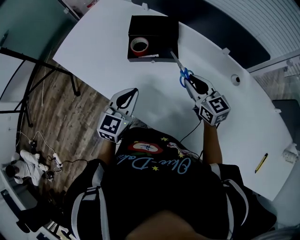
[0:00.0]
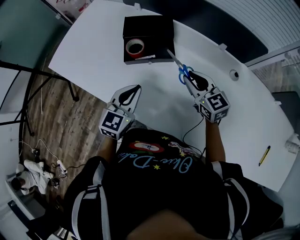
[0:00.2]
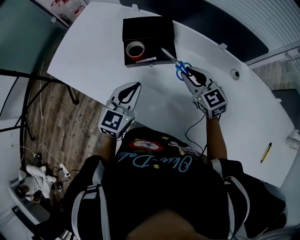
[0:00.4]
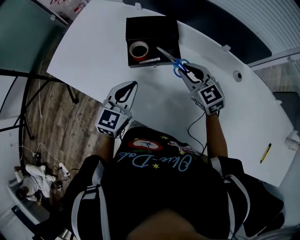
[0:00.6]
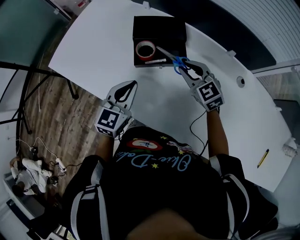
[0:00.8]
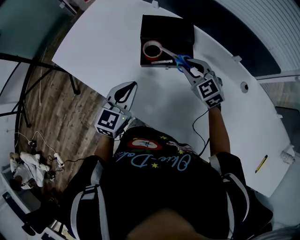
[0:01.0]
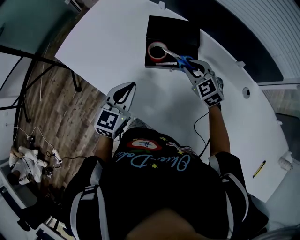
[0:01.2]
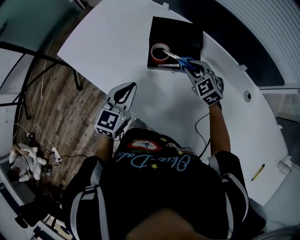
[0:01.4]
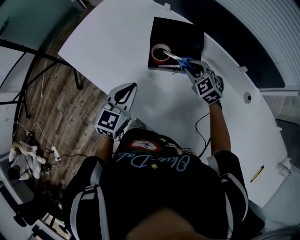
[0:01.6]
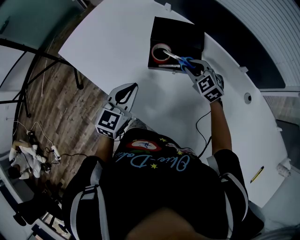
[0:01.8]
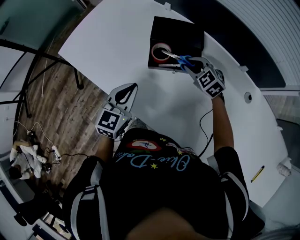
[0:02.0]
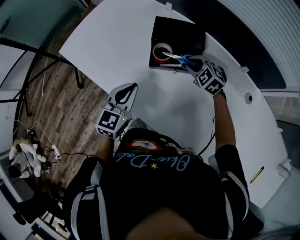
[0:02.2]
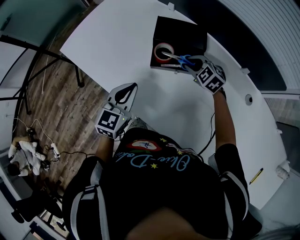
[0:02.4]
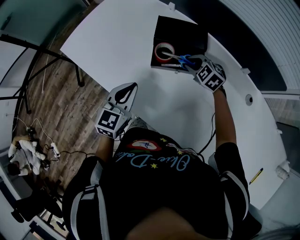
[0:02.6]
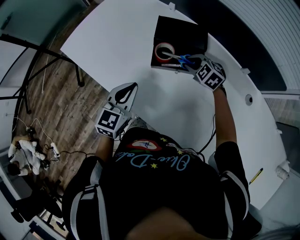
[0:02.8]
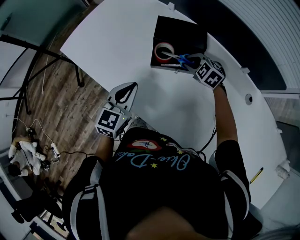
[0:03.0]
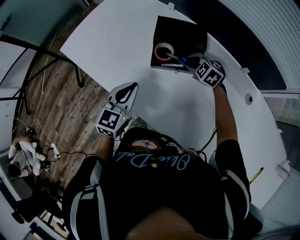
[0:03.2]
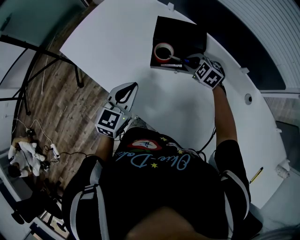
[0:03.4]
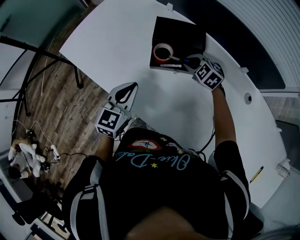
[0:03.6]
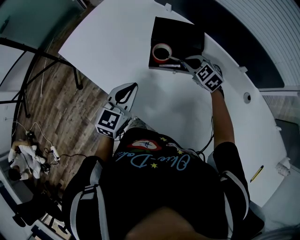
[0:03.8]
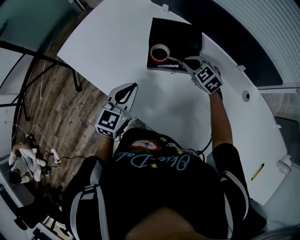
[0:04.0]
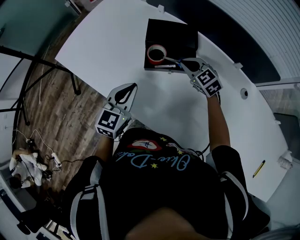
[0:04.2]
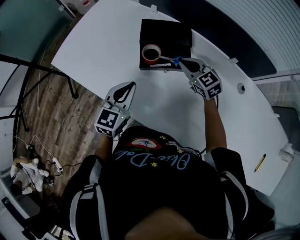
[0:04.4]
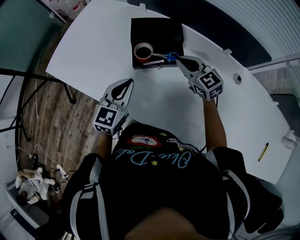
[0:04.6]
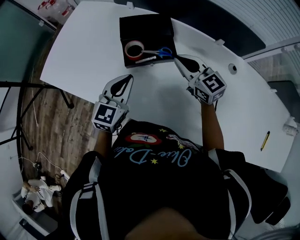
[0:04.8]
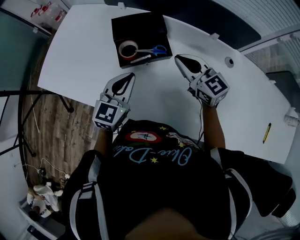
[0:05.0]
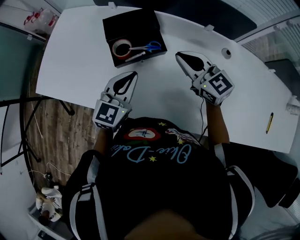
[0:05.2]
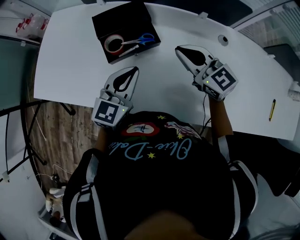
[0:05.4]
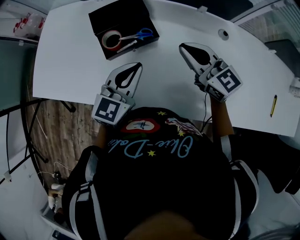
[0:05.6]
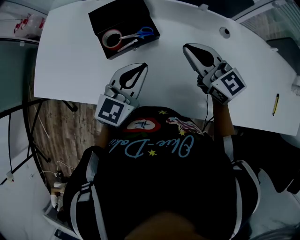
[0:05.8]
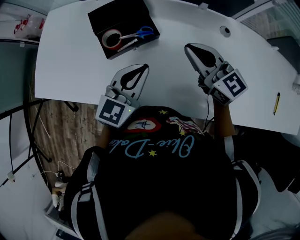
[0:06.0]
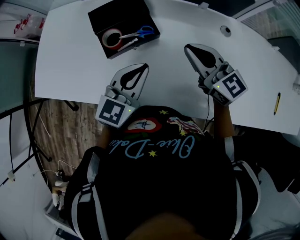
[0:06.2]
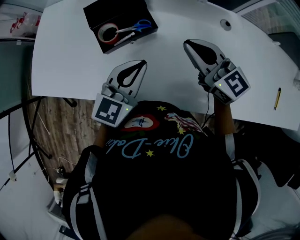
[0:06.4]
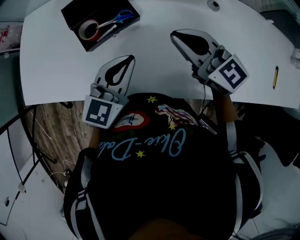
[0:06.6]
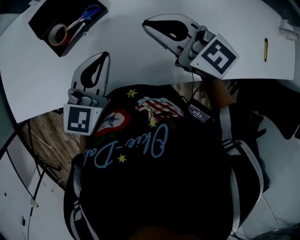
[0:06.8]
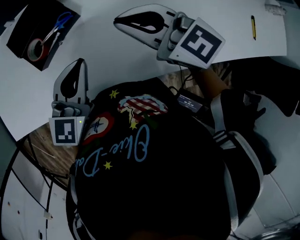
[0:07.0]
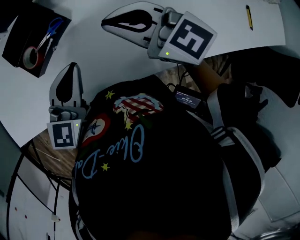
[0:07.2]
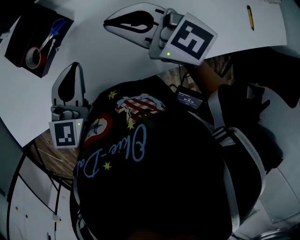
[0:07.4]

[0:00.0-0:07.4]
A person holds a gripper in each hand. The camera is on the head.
0:00.0 to 0:01.4: The left gripper heads to the left and forward, covering some 10 cm; the right gripper is displaced forward, to the left and downward by some 15 cm, and changes its angle by about 40 degrees.
0:01.4 to 0:03.0: The right gripper shifts by some 5 cm.
0:03.0 to 0:04.4: The right gripper travels upward by some 5 cm, and rotates some 30 degrees.
0:04.4 to 0:06.0: The right gripper moves upward, backward and to the right, some 20 cm, and changes its angle by roughly 30 degrees. Meanwhile the left gripper is displaced to the right by some 15 cm, and changes its angle by roughly 30 degrees.
0:06.0 to 0:07.4: The grippers make only small movements.

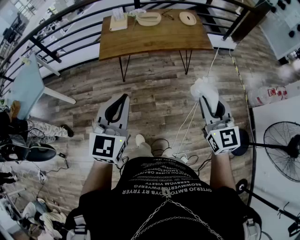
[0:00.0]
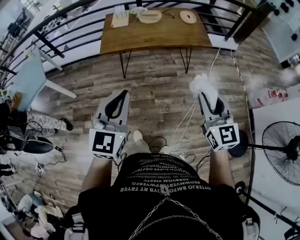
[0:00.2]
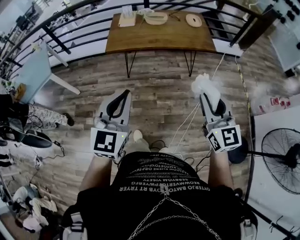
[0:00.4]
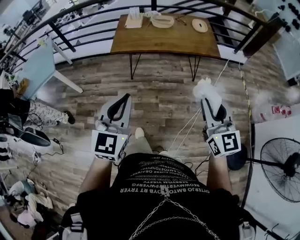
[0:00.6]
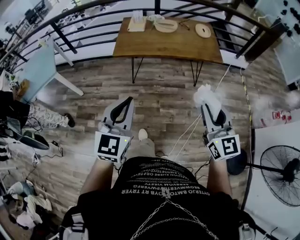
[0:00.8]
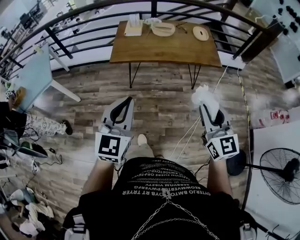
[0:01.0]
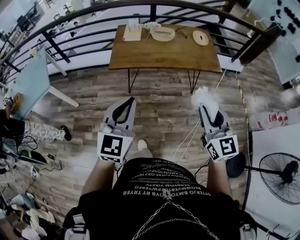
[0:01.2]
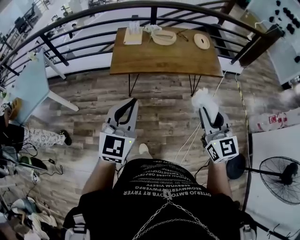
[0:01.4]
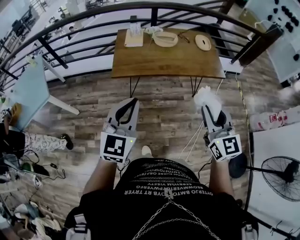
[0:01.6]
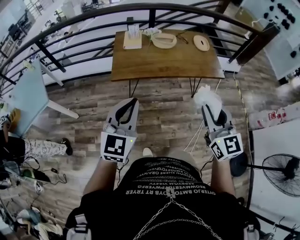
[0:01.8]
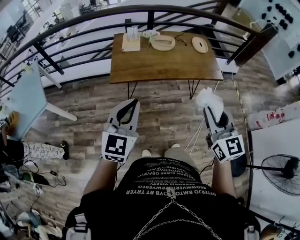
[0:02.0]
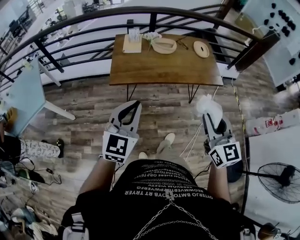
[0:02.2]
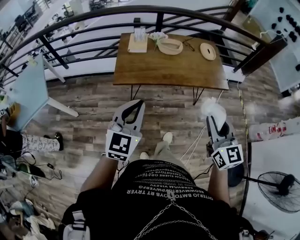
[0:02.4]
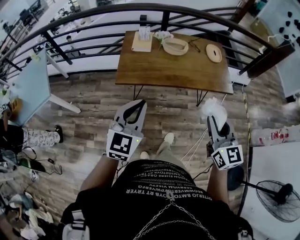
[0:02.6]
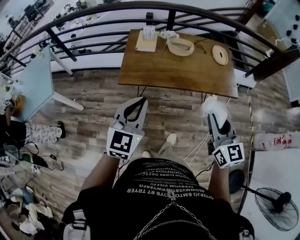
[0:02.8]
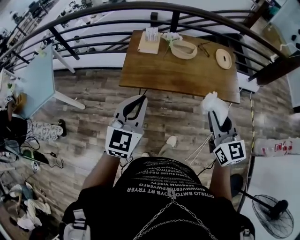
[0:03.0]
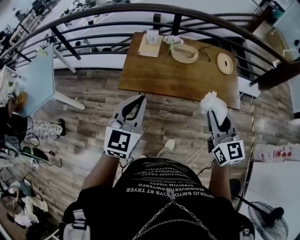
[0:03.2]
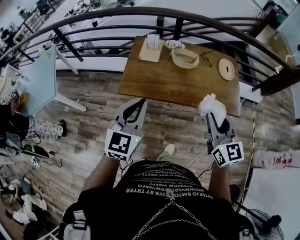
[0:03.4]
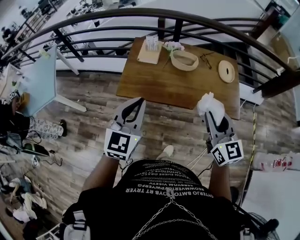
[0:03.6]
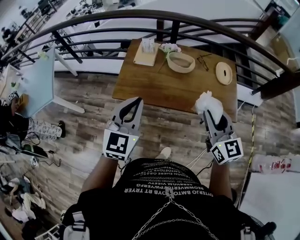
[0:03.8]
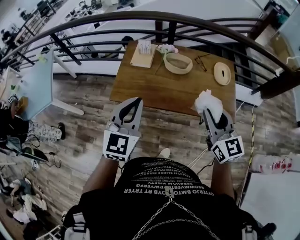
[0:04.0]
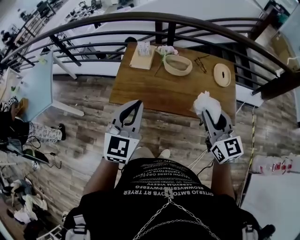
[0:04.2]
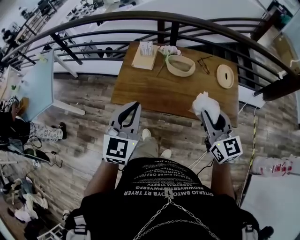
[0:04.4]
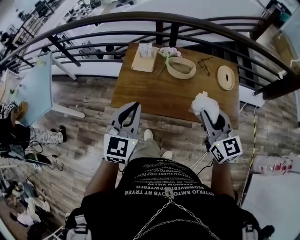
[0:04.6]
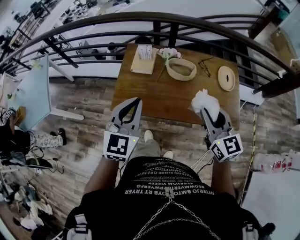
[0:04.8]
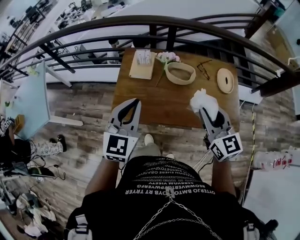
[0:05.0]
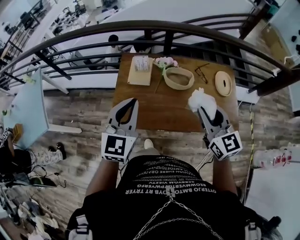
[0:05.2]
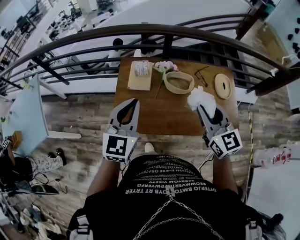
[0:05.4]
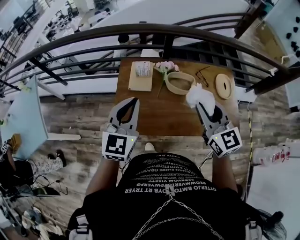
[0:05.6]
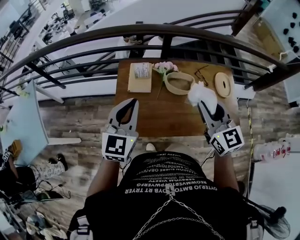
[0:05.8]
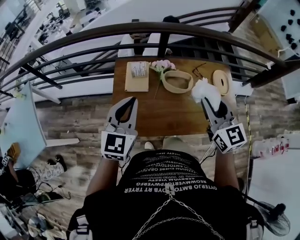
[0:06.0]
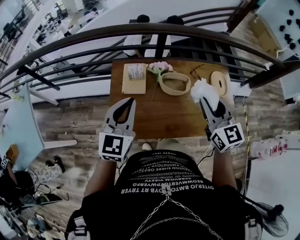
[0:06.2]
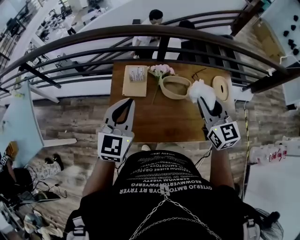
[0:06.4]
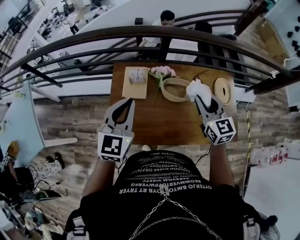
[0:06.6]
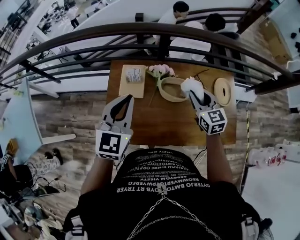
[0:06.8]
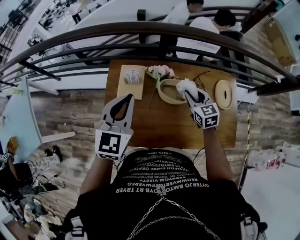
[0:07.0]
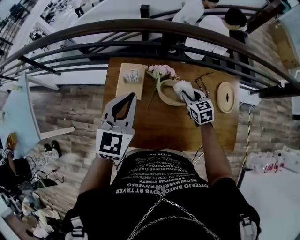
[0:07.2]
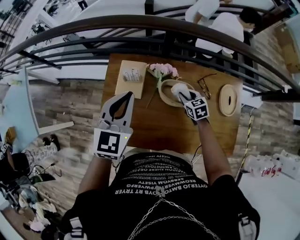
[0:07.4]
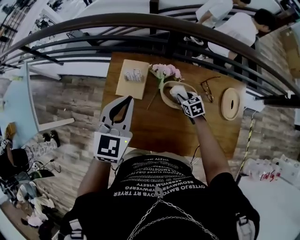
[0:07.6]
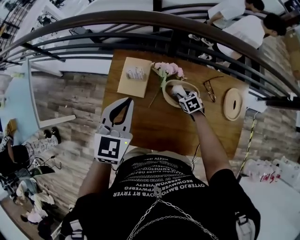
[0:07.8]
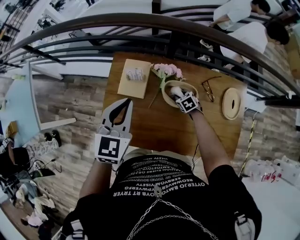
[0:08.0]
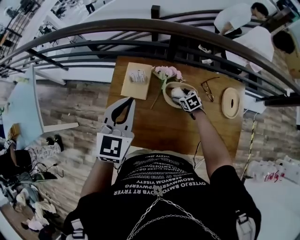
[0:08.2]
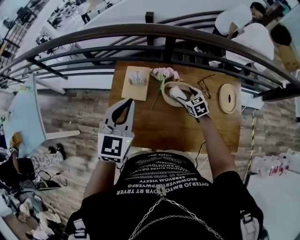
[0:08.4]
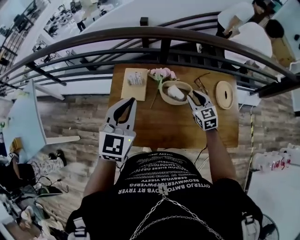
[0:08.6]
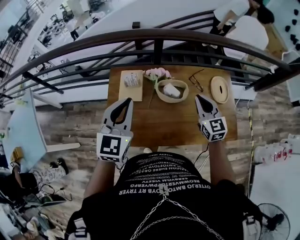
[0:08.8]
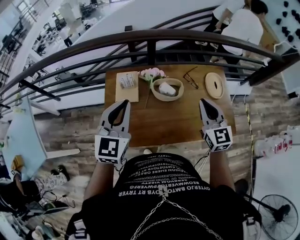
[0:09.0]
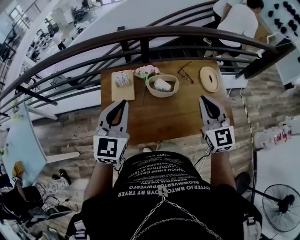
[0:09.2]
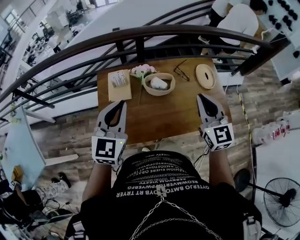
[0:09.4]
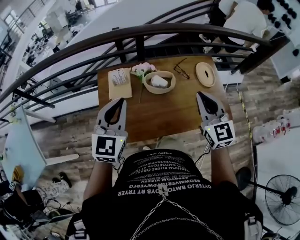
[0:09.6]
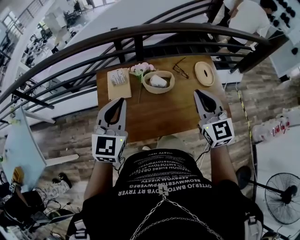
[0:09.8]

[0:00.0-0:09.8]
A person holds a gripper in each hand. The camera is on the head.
0:00.0 to 0:01.4: The left gripper is displaced forward by approximately 10 cm. The right gripper is displaced forward and to the left by about 10 cm.
0:01.4 to 0:02.8: The grippers both shift forward by some 15 cm.
0:02.8 to 0:04.2: Both grippers move forward and to the right, roughly 20 cm.
0:04.2 to 0:05.6: The two grippers go roughly 25 cm forward and to the left.
0:05.6 to 0:07.0: The right gripper shifts roughly 30 cm forward and downward, and changes its angle by approximately 20 degrees; the left gripper is displaced forward by roughly 15 cm.
0:07.0 to 0:08.4: The right gripper goes approximately 15 cm downward, and opens its fingers.
0:08.4 to 0:09.8: The right gripper moves upward and backward, approximately 40 cm, tilts its fingers about 40 degrees upward, and closes up. The left gripper moves backward, roughly 10 cm.

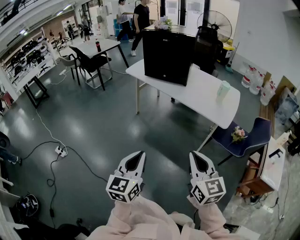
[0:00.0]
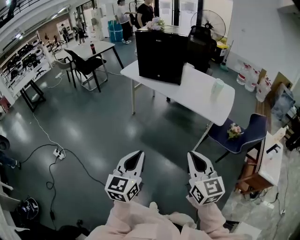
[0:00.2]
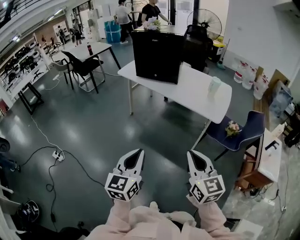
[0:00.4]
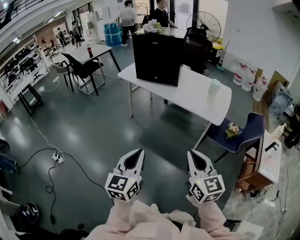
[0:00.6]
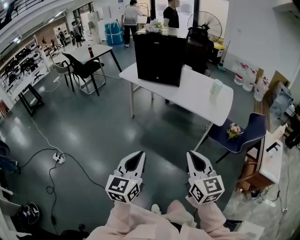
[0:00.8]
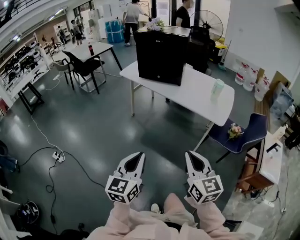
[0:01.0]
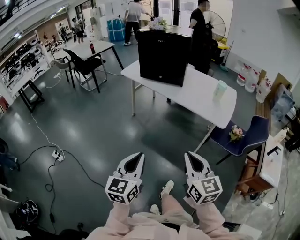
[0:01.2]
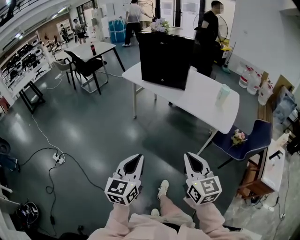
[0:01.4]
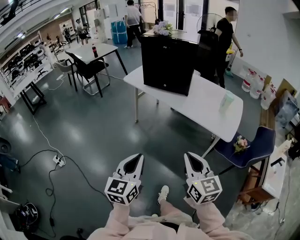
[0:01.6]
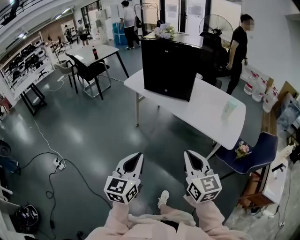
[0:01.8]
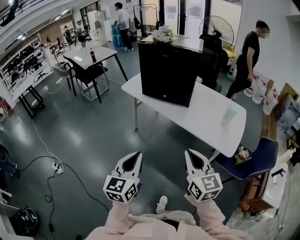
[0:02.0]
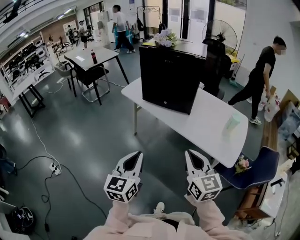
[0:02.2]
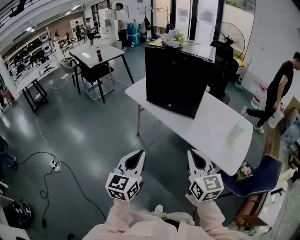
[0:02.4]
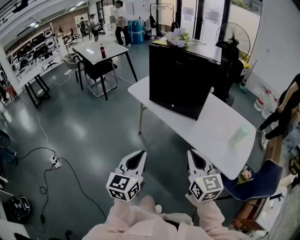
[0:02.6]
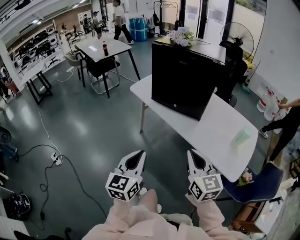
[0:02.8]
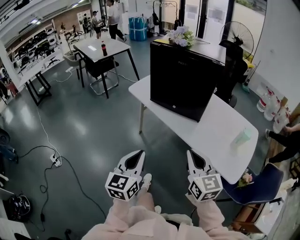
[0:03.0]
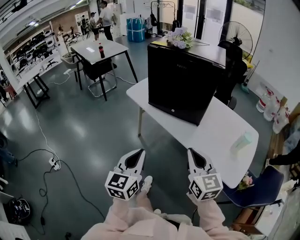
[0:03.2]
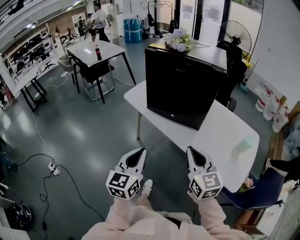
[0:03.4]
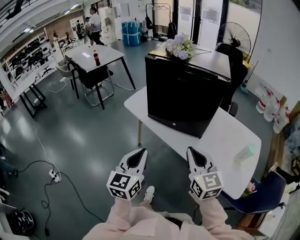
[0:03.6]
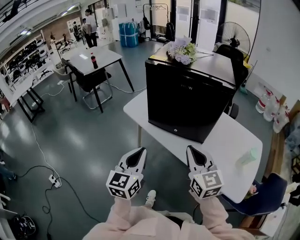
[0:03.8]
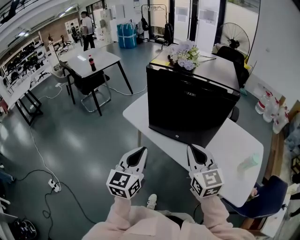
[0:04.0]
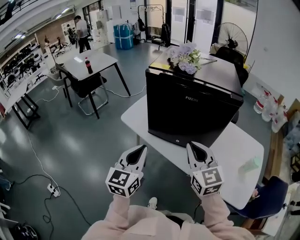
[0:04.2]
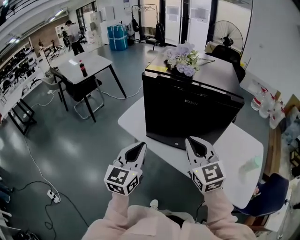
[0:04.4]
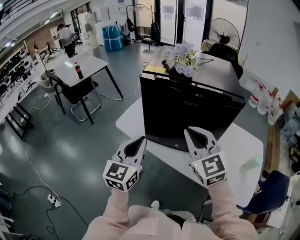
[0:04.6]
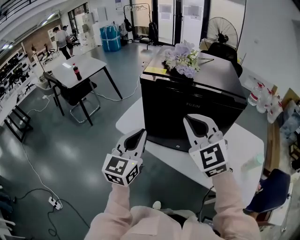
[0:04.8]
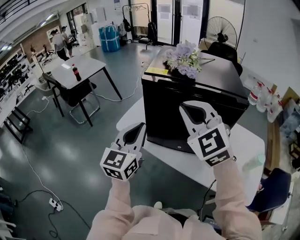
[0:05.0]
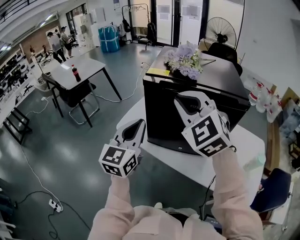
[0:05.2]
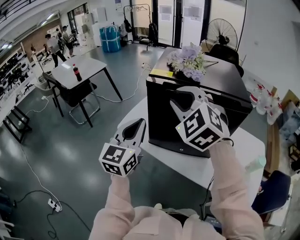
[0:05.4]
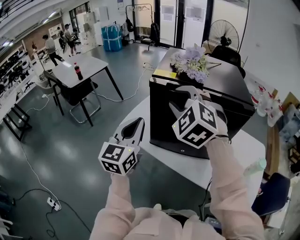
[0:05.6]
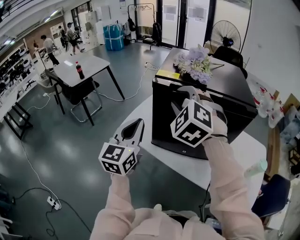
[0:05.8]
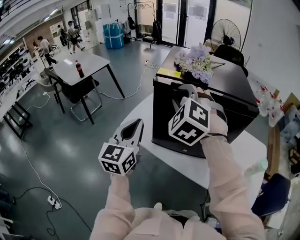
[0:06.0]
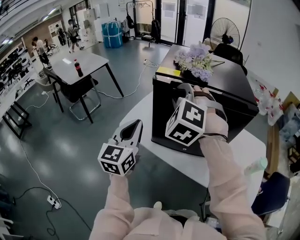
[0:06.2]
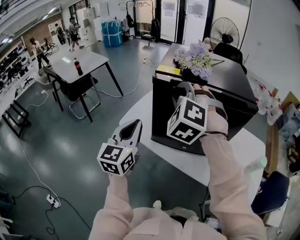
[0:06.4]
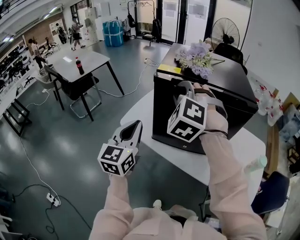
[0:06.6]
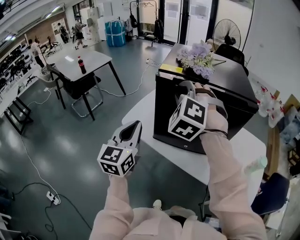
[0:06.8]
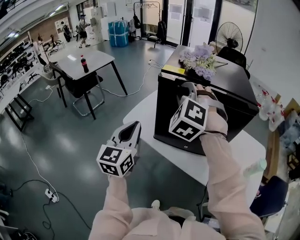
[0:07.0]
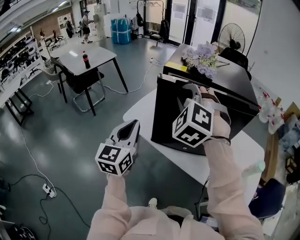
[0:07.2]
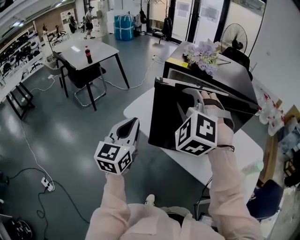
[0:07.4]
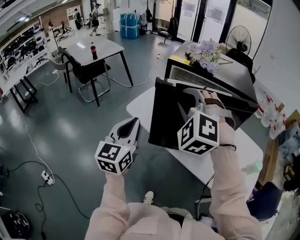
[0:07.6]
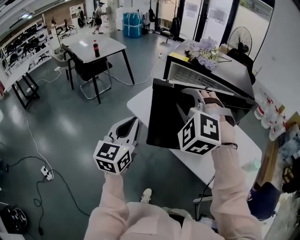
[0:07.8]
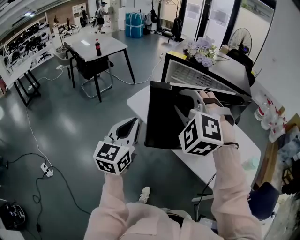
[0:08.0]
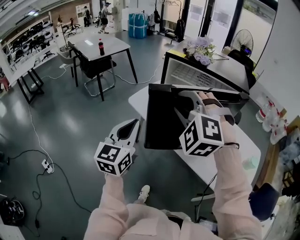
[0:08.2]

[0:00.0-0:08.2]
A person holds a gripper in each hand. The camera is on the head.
0:00.0 to 0:01.6: The two grippers go about 10 cm forward.
0:01.6 to 0:03.2: The grippers both shift forward by some 30 cm.
0:03.2 to 0:05.0: The left gripper heads forward, covering some 35 cm; the right gripper goes some 40 cm forward, upward and to the left, and rotates roughly 40 degrees.
0:05.0 to 0:06.6: The left gripper goes approximately 5 cm to the left; the right gripper moves forward and to the left, some 10 cm, and changes its angle by roughly 40 degrees.
0:06.6 to 0:08.2: The two grippers go roughly 20 cm backward. The right gripper swivels some 20 degrees.
